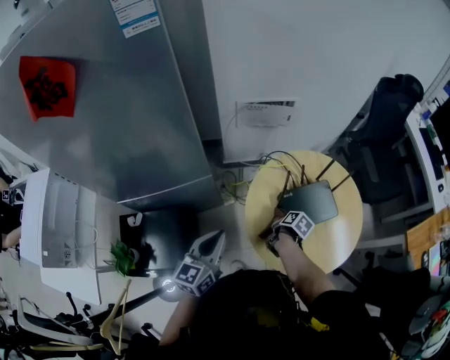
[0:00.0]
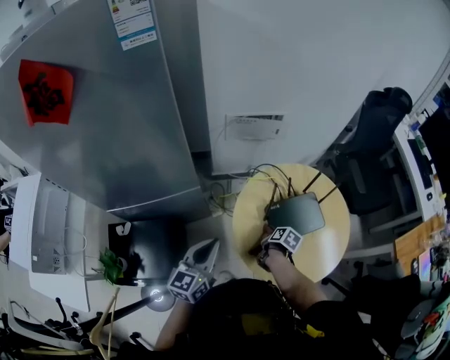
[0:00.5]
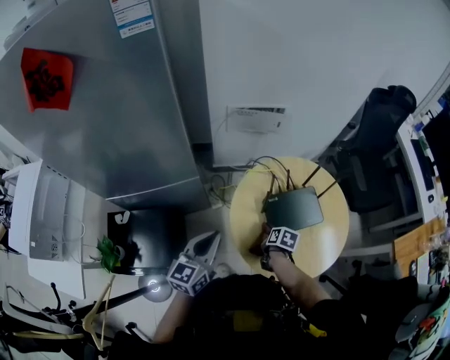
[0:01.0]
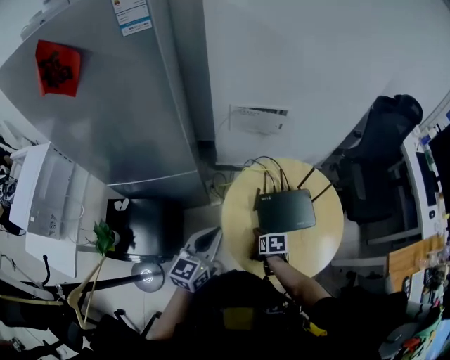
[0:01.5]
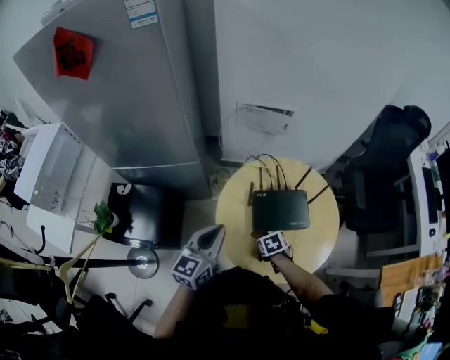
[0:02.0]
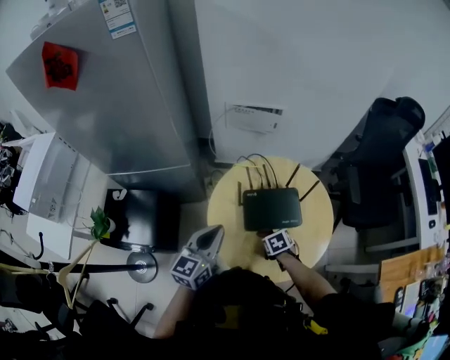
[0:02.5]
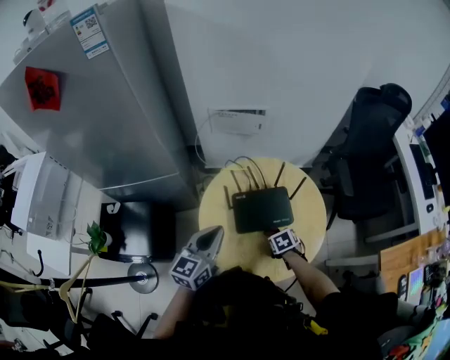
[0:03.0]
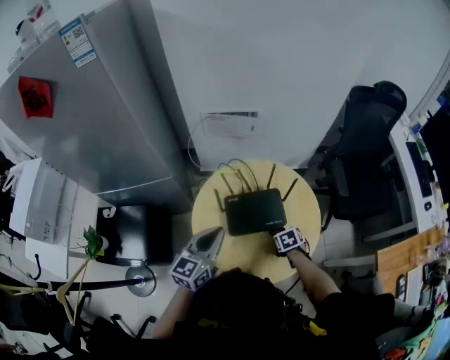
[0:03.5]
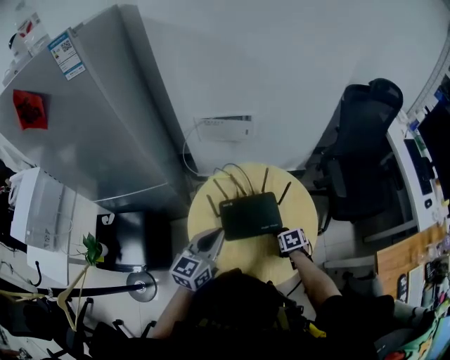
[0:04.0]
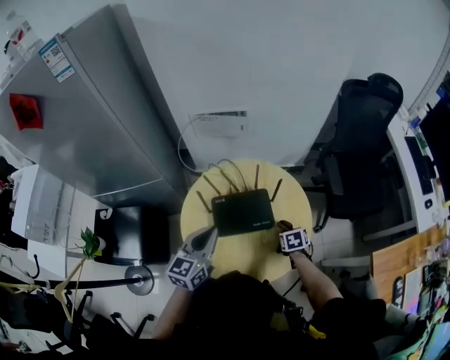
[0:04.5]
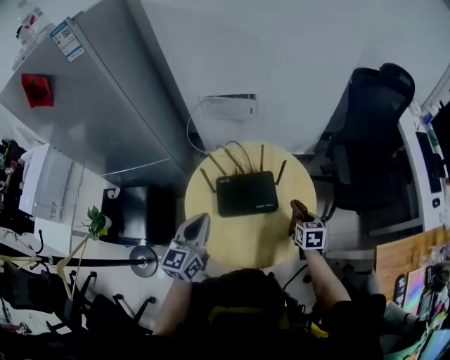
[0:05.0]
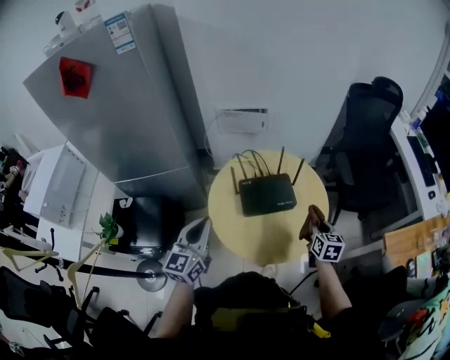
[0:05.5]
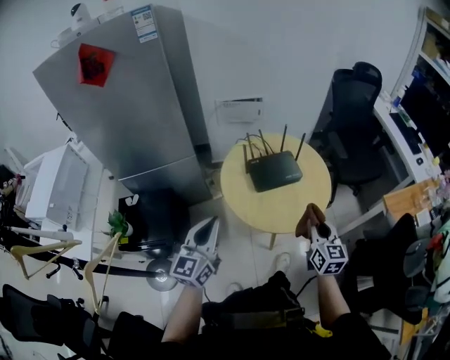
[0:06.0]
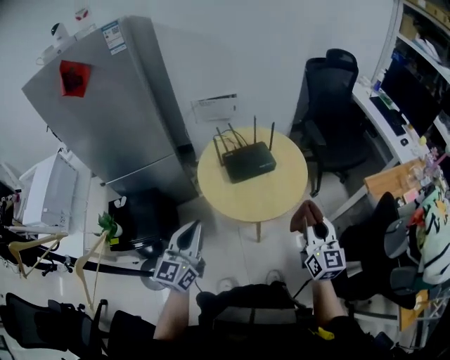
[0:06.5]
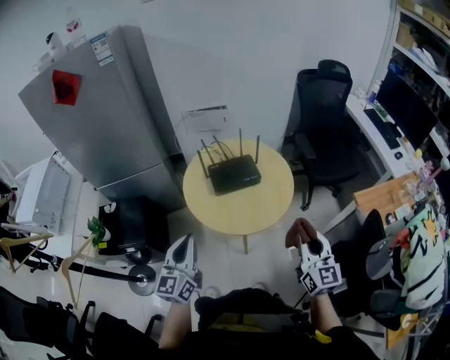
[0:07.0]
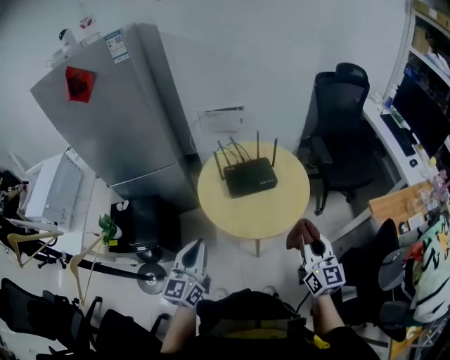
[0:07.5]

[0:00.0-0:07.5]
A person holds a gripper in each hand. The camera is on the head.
0:00.0 to 0:02.0: The right gripper shifts approximately 10 cm backward and to the right, and rolls counterclockwise, seen from behind, by approximately 80 degrees. The left gripper heads to the right, covering some 15 cm.
0:02.0 to 0:04.0: The right gripper shifts by some 20 cm, while the left gripper shifts by about 10 cm.
0:04.0 to 0:05.5: The left gripper shifts by roughly 15 cm, while the right gripper shifts about 15 cm upward, and points its fingers approximately 40 degrees further upward.
0:05.5 to 0:07.5: The left gripper heads backward, covering about 20 cm. Meanwhile the right gripper is displaced backward and upward by some 30 cm, and tilts its fingers some 30 degrees upward.

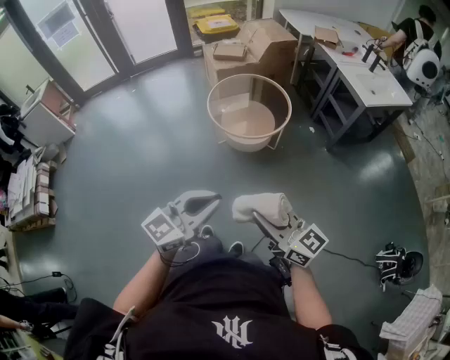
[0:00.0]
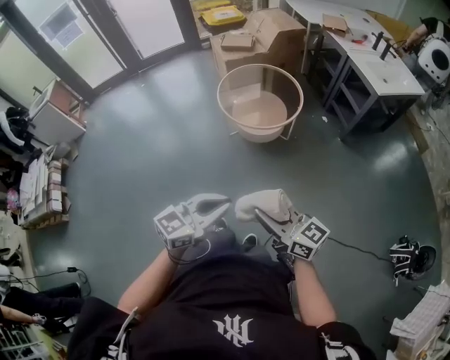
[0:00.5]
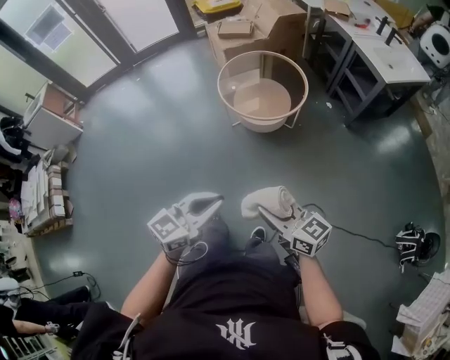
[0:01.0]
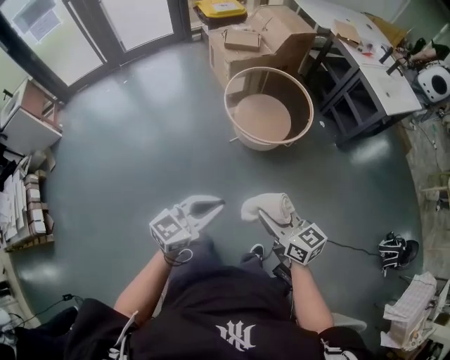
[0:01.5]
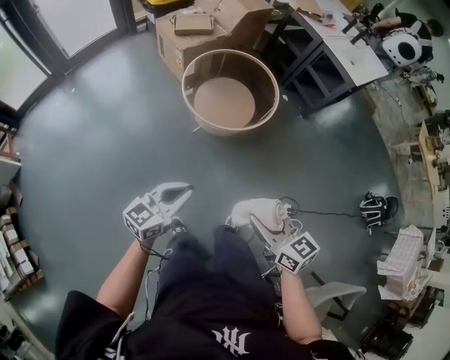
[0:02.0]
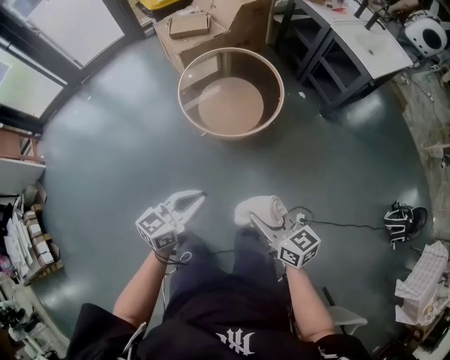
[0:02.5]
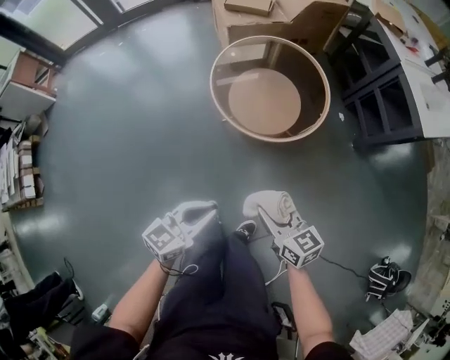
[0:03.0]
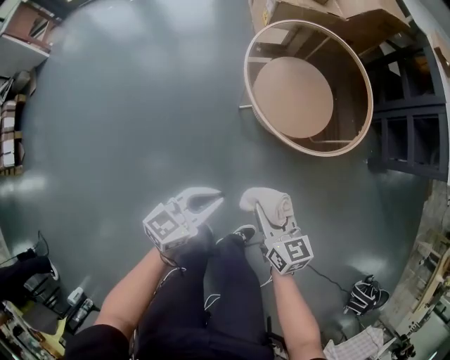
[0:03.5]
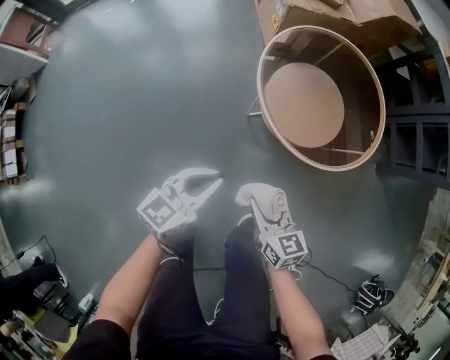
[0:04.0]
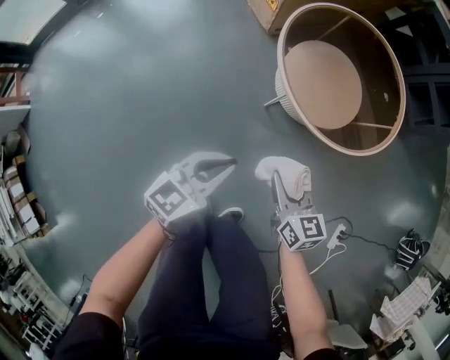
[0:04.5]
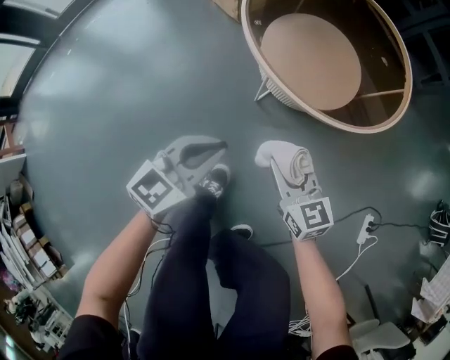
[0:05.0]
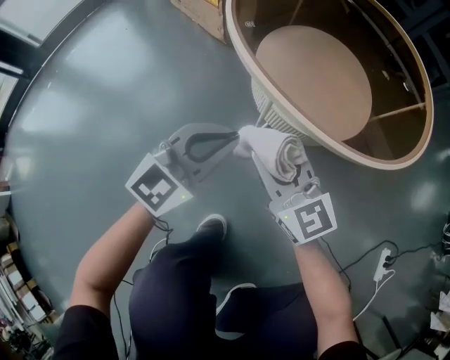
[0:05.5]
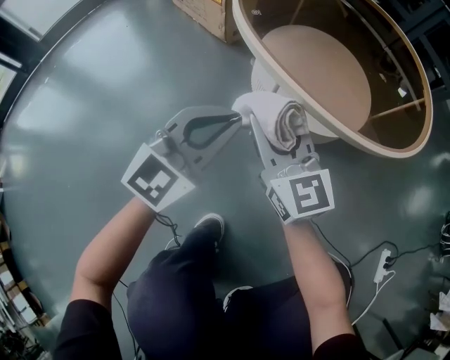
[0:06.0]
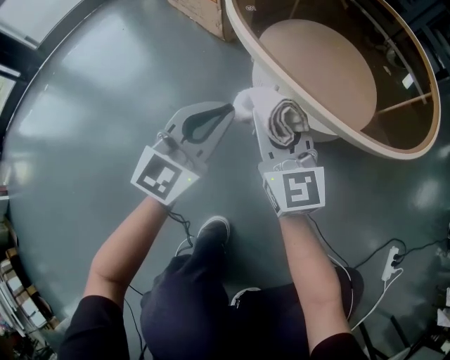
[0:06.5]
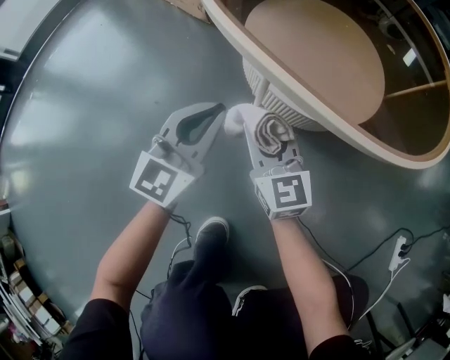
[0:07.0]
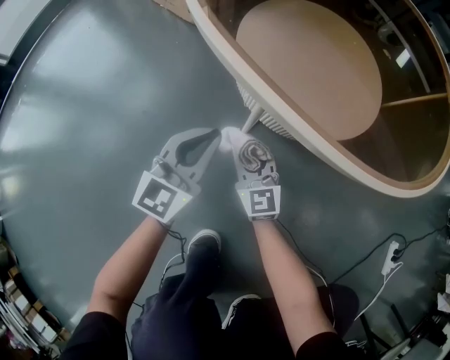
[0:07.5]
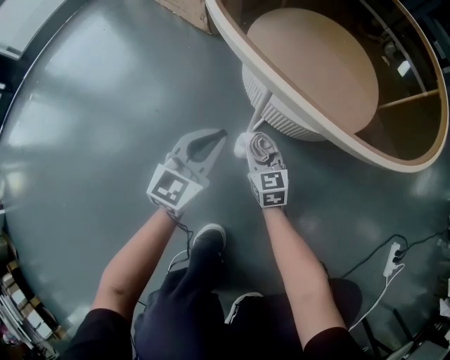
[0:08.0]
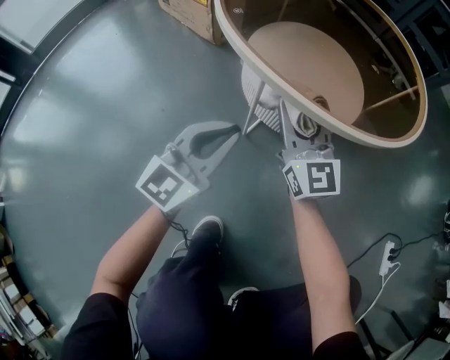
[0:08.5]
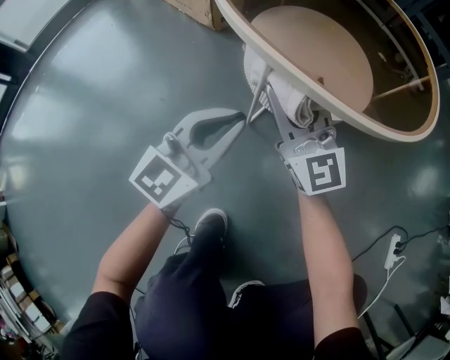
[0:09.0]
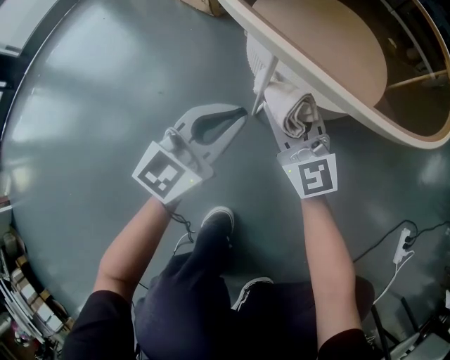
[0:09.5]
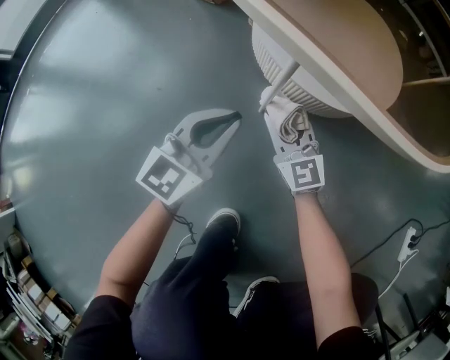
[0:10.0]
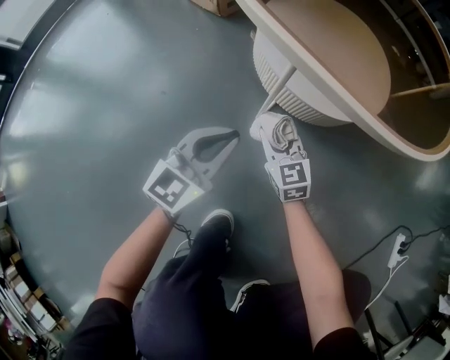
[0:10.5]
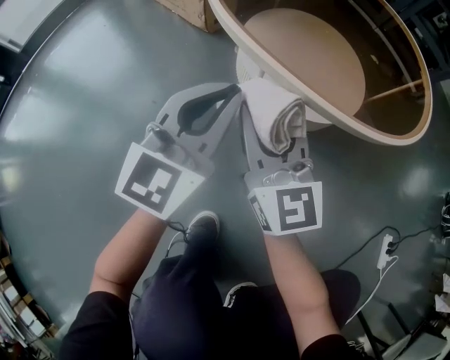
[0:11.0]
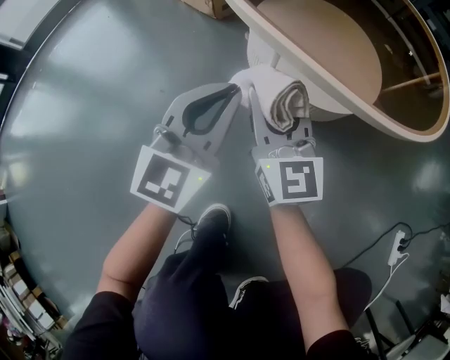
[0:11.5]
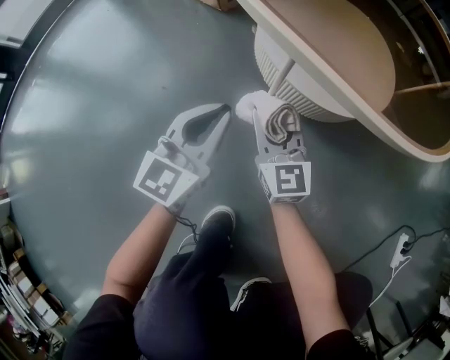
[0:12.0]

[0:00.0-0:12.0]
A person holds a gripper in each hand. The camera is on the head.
0:00.0 to 0:02.0: The grippers both shift to the left, forward and downward by some 35 cm. The right gripper turns by approximately 30 degrees.
0:02.0 to 0:04.0: Both grippers travel together downward and forward, approximately 40 cm. The left gripper swivels some 30 degrees.
0:04.0 to 0:06.0: The right gripper shifts by approximately 35 cm, and changes its angle by some 40 degrees. The left gripper heads downward, covering about 25 cm, and swivels about 40 degrees.
0:06.0 to 0:08.0: The right gripper is displaced downward by roughly 30 cm, and turns by some 30 degrees; the left gripper shifts some 15 cm downward.
0:08.0 to 0:10.0: The right gripper travels upward and back again, approximately 30 cm each way. The left gripper goes upward and returns, about 15 cm each way.
0:10.0 to 0:12.0: The right gripper moves some 25 cm upward and comes back, while the left gripper goes upward and returns, roughly 20 cm each way.

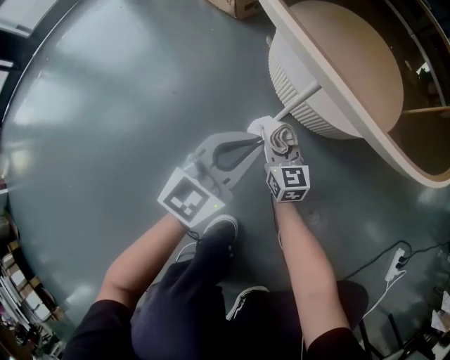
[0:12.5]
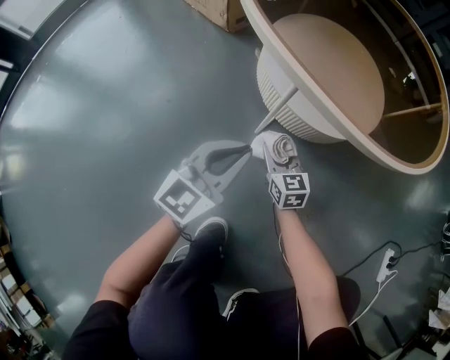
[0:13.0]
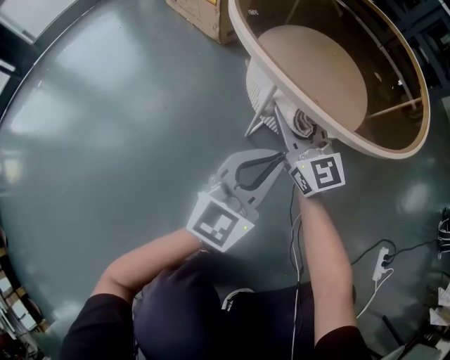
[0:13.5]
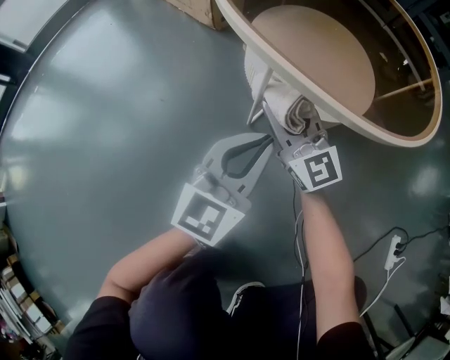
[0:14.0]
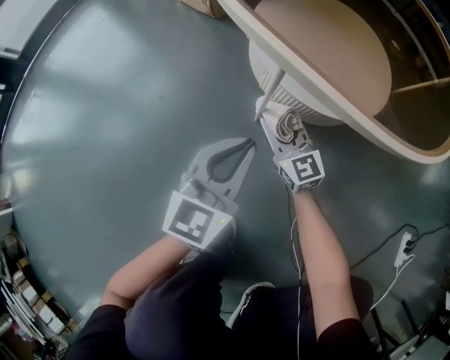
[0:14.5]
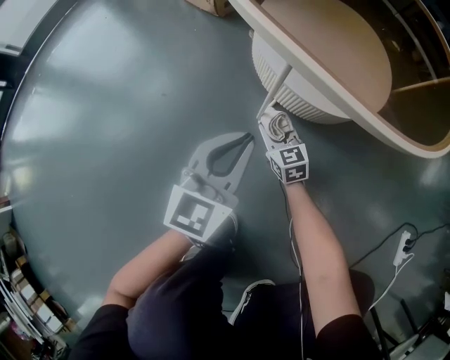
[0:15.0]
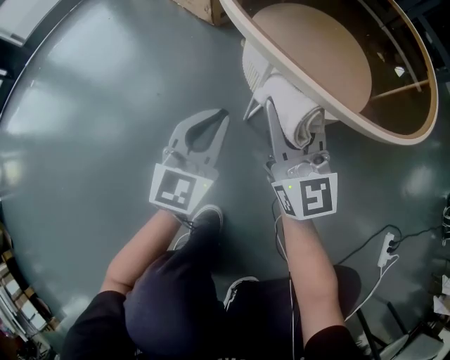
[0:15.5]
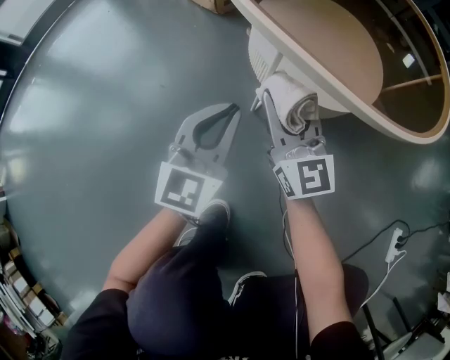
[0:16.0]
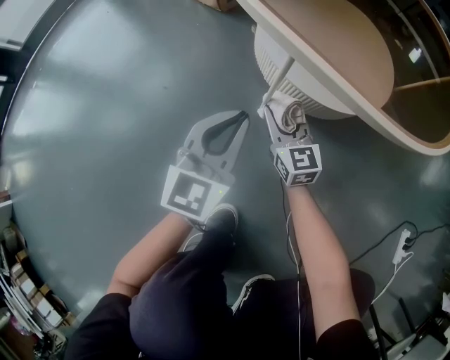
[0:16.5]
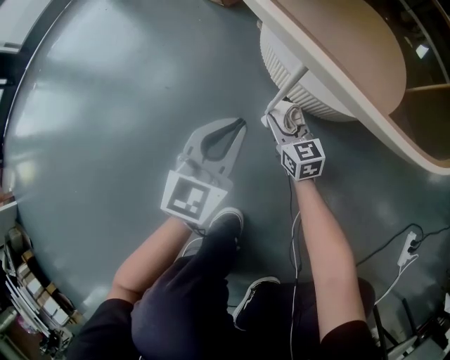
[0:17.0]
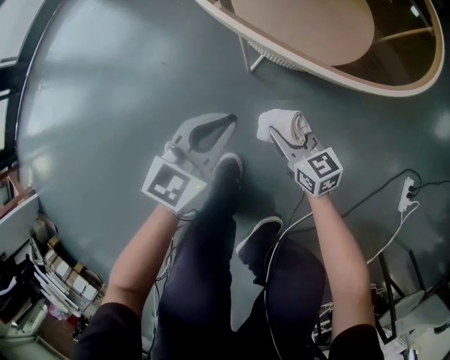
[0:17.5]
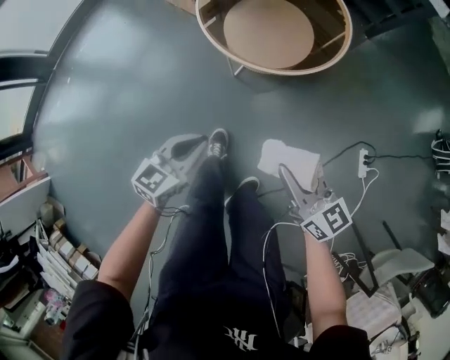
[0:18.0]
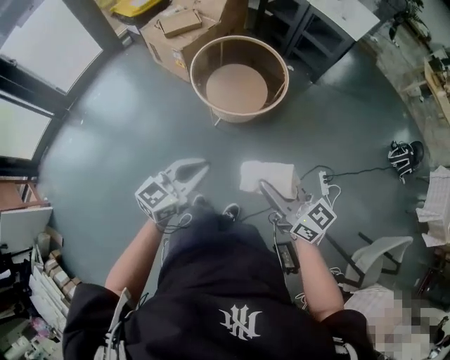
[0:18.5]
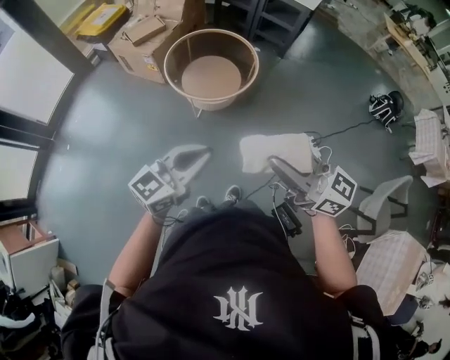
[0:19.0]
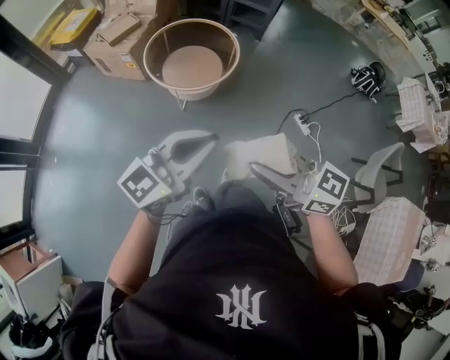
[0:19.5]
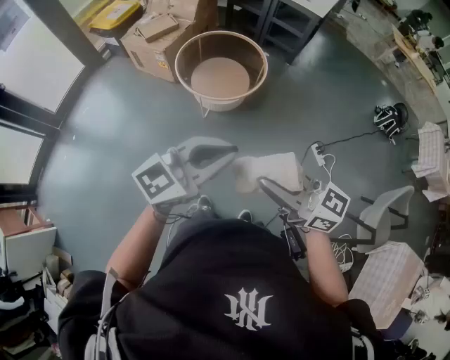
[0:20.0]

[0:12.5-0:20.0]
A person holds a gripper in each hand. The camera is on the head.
0:12.5 to 0:14.5: The left gripper goes upward and returns, some 10 cm each way; the right gripper goes upward and returns, about 25 cm each way.
0:14.5 to 0:16.5: The right gripper swings up and down, roughly 35 cm each way, with 2 reversals.
0:16.5 to 0:18.0: The grippers both shift upward and backward by about 60 cm. The right gripper rotates roughly 20 degrees. The left gripper changes its angle by some 30 degrees.
0:18.0 to 0:20.0: The two grippers go about 50 cm upward and backward. The left gripper changes its angle by about 40 degrees.
